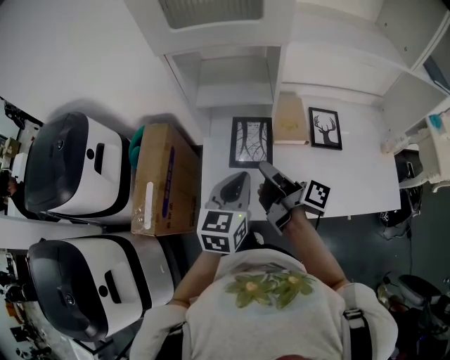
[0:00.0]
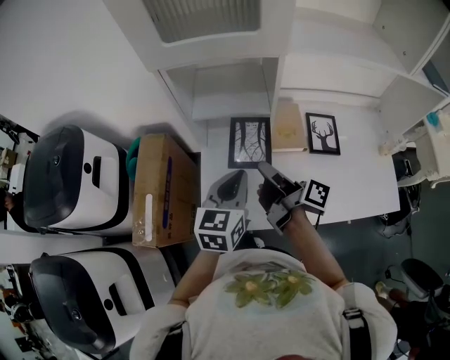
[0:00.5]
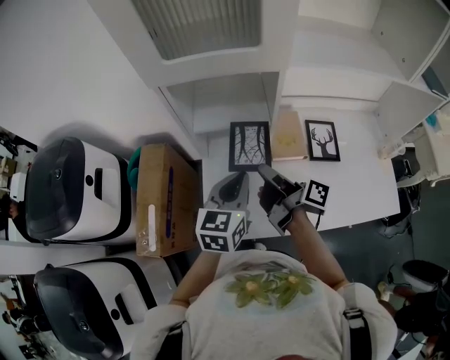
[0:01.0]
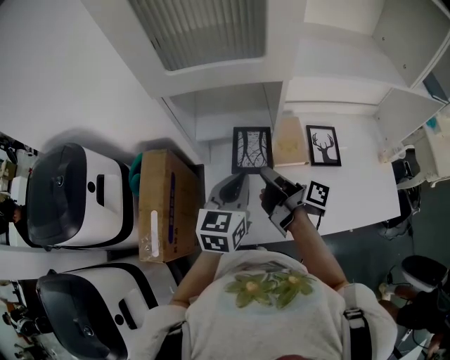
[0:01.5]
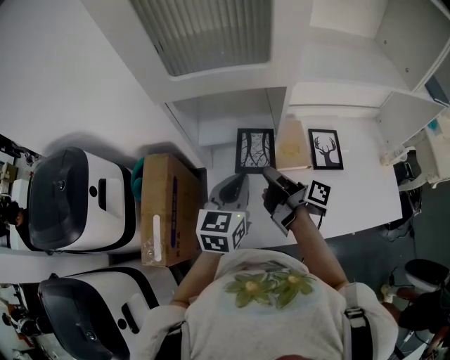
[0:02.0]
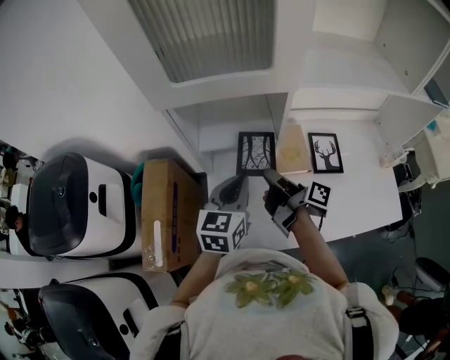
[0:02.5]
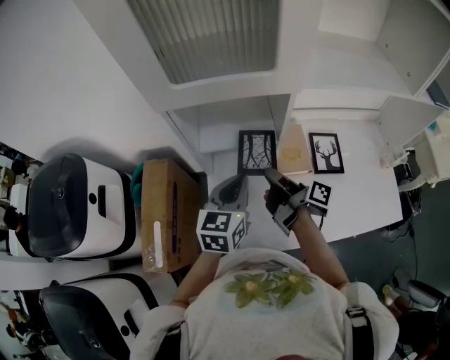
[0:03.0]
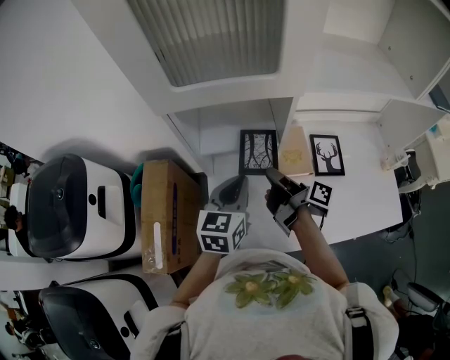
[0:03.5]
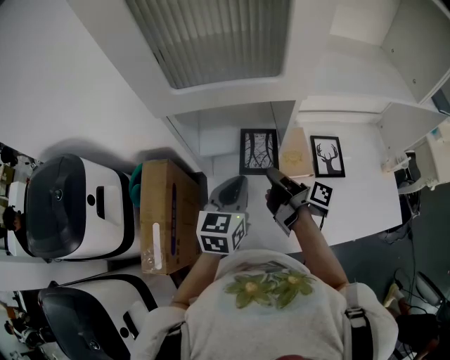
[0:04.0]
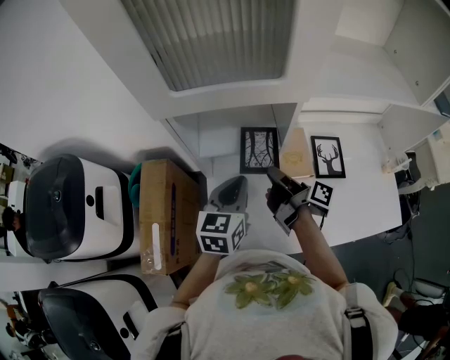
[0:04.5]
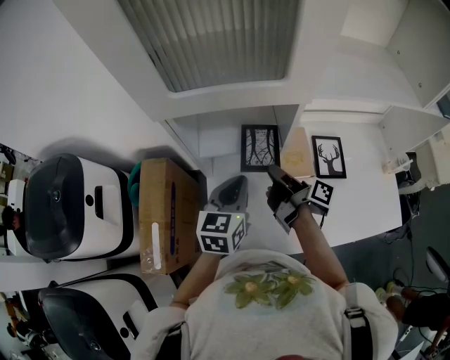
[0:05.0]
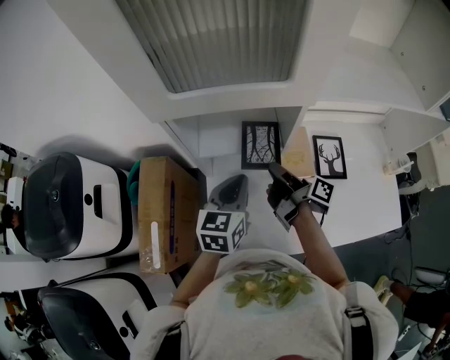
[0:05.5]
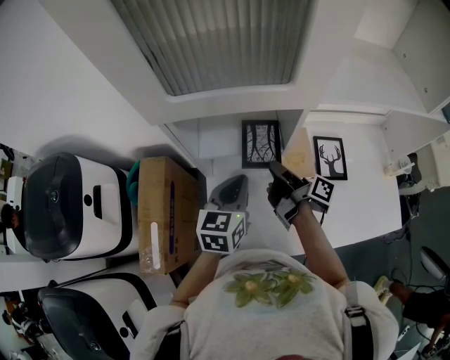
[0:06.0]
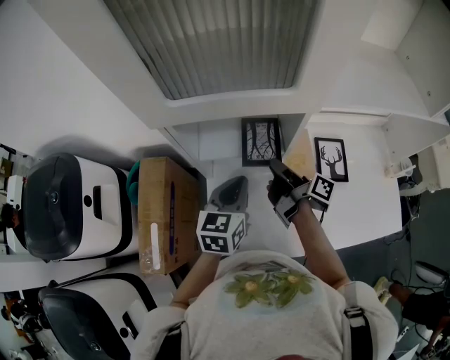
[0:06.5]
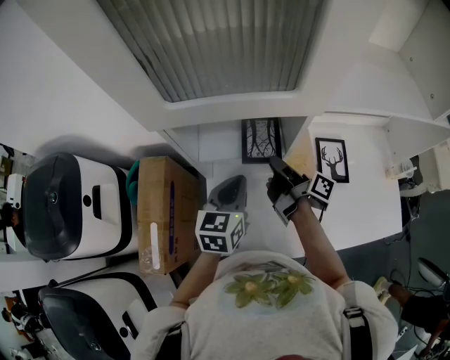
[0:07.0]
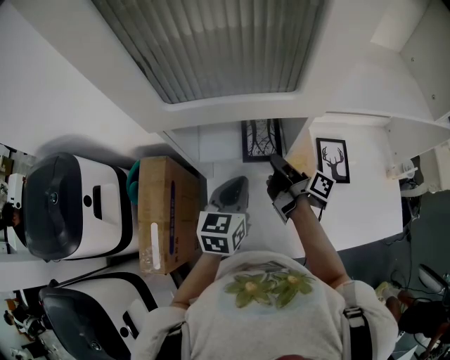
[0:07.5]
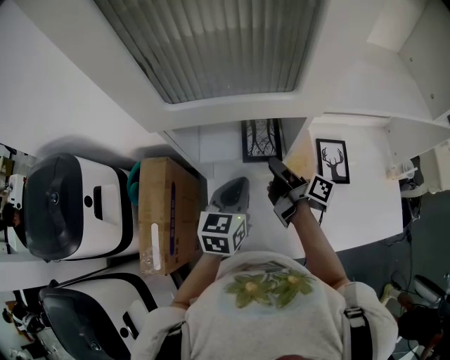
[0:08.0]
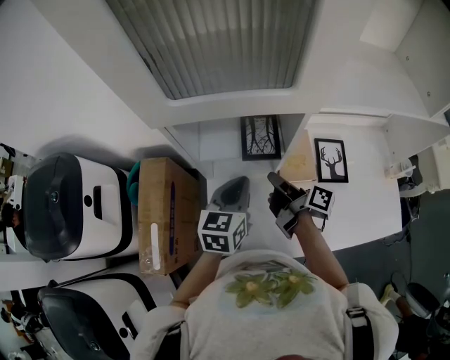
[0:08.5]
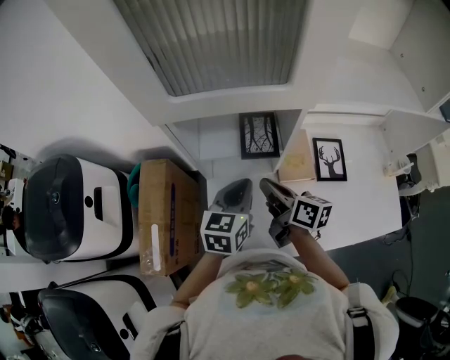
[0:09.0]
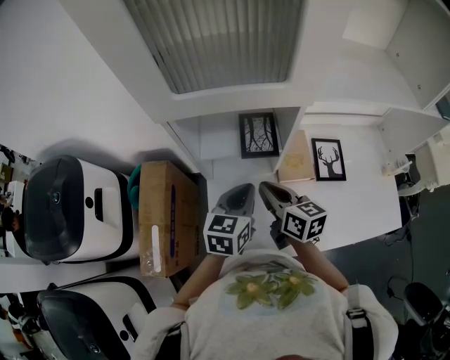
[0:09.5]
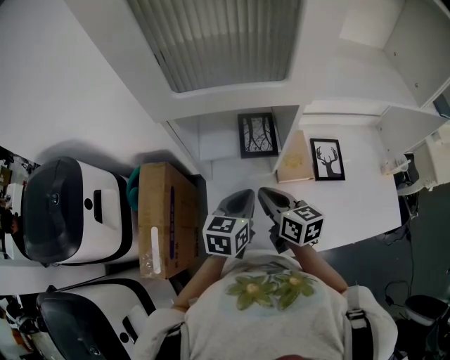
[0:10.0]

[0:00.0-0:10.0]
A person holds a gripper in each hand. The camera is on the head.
0:00.0 to 0:02.0: The left gripper shifts by roughly 10 cm.
0:08.0 to 0:10.0: The left gripper changes place by roughly 5 cm.

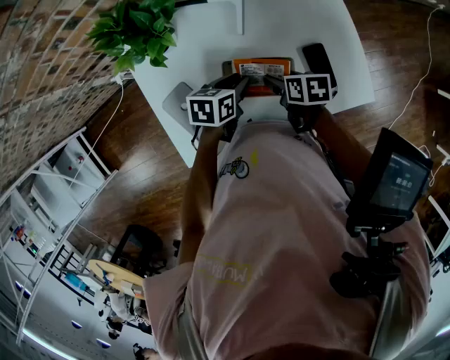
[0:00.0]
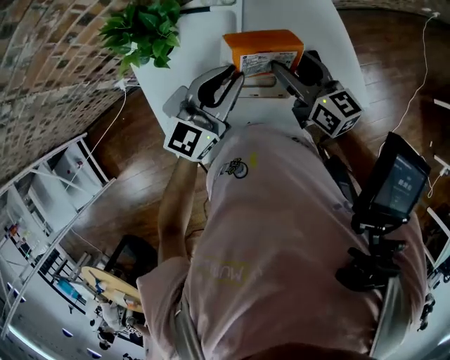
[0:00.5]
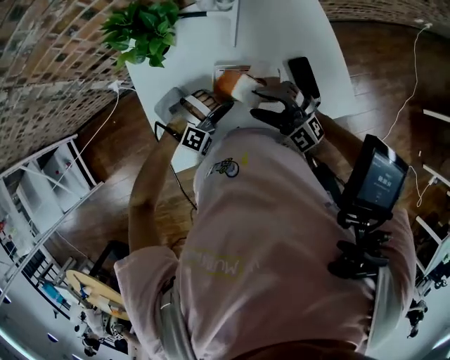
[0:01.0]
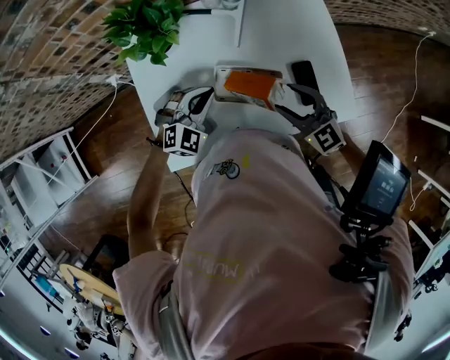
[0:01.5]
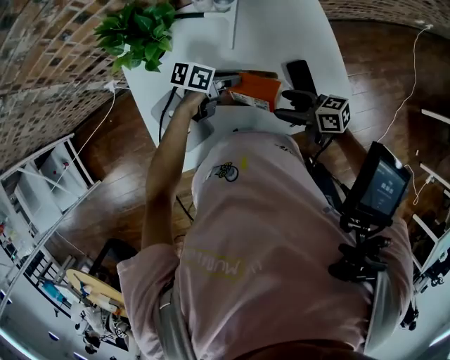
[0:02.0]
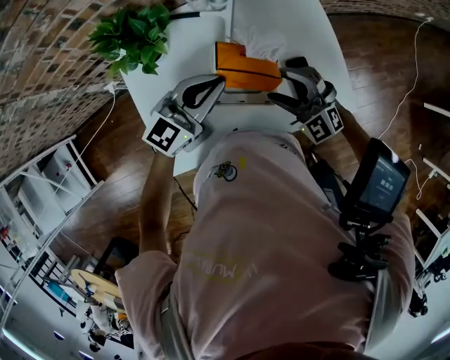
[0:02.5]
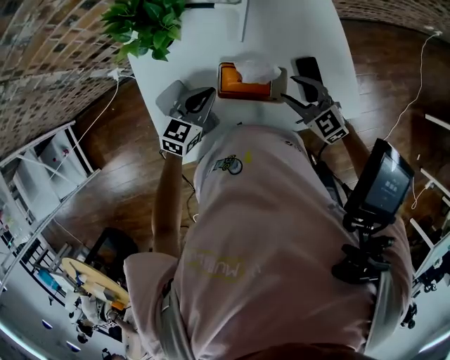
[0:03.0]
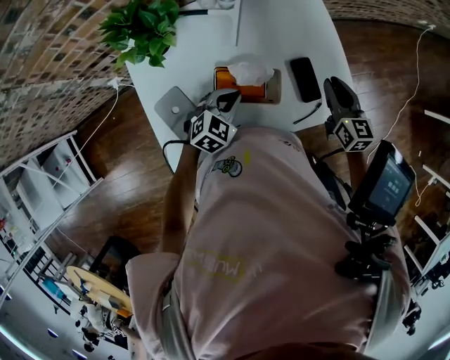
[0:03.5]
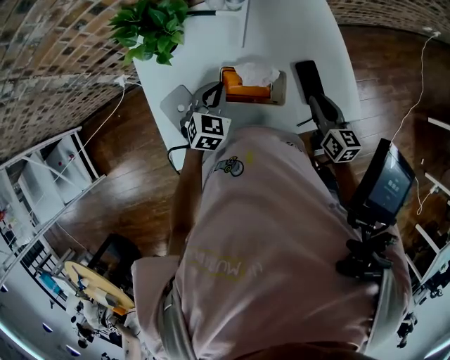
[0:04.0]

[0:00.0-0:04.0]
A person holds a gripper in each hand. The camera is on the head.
0:00.0 to 0:02.0: The left gripper swings up and down, some 25 cm each way, with 3 reversals, and rotates roughly 30 degrees. The right gripper moves upward, about 5 cm, and angles its fingers upward, by about 30 degrees.
0:02.0 to 0:04.0: The left gripper reaches approximately 20 cm upward, then returns, and changes its angle by roughly 70 degrees, while the right gripper swings up and down, roughly 5 cm each way, with 2 reversals, rotates approximately 50 degrees, and closes its fingers.

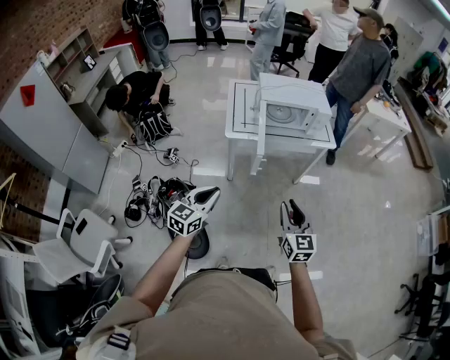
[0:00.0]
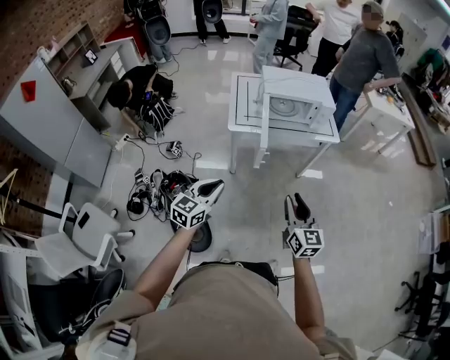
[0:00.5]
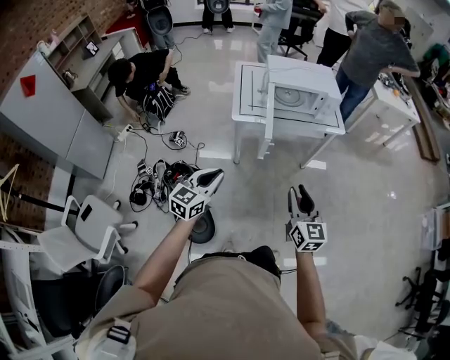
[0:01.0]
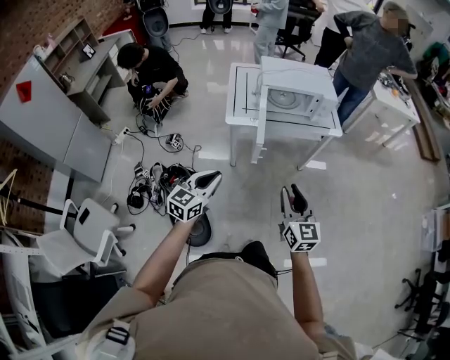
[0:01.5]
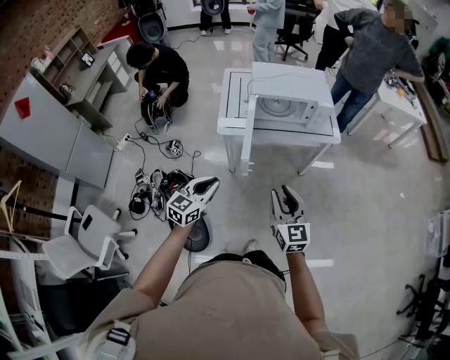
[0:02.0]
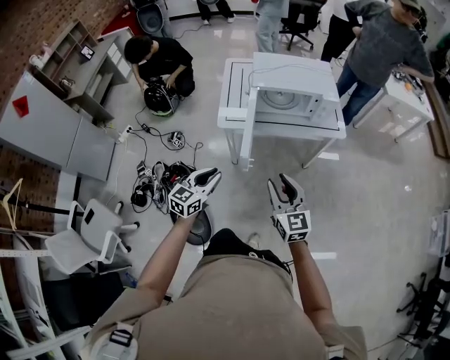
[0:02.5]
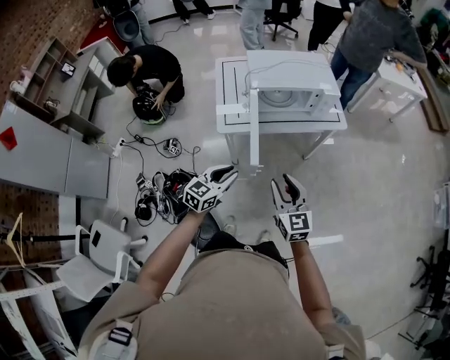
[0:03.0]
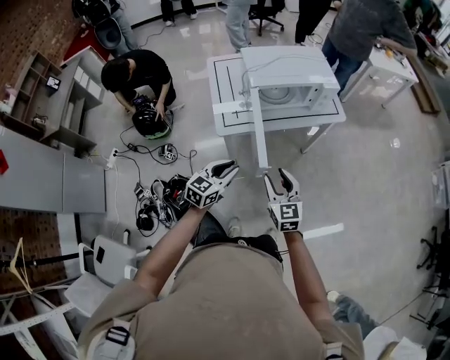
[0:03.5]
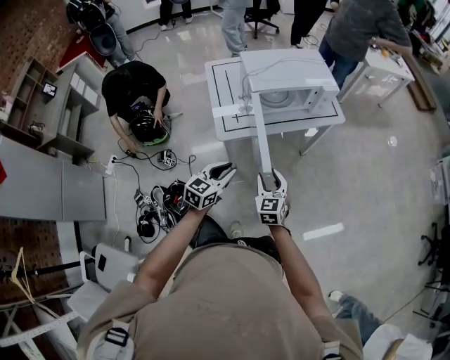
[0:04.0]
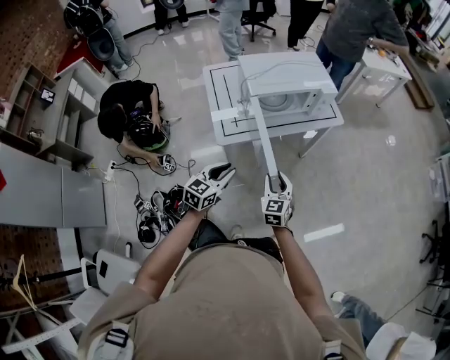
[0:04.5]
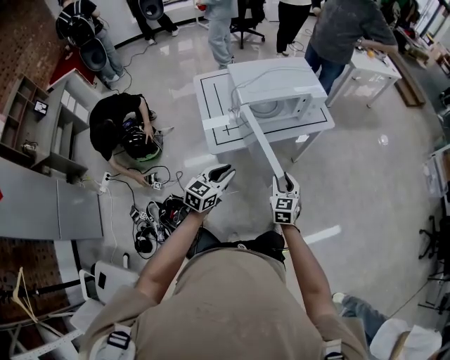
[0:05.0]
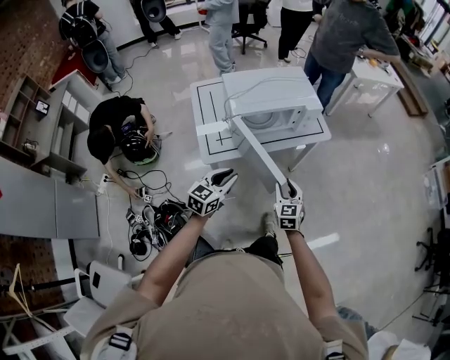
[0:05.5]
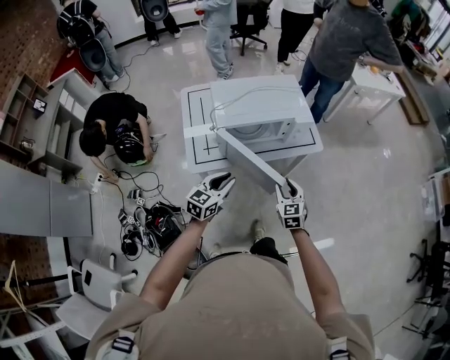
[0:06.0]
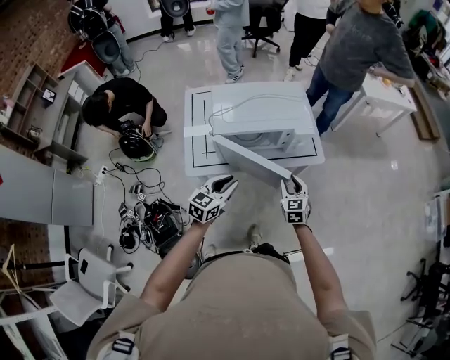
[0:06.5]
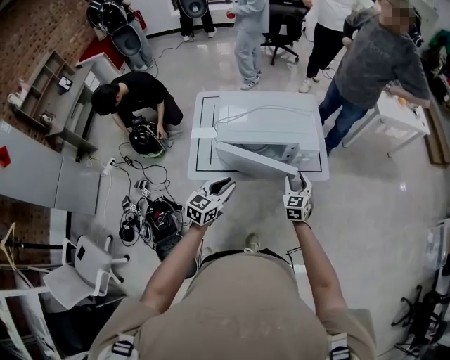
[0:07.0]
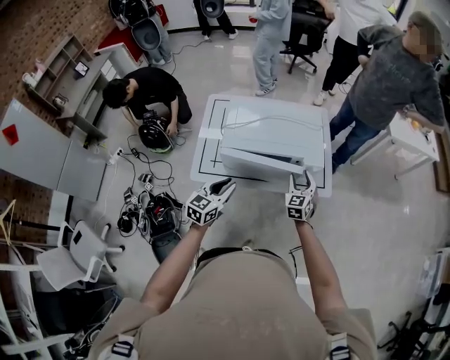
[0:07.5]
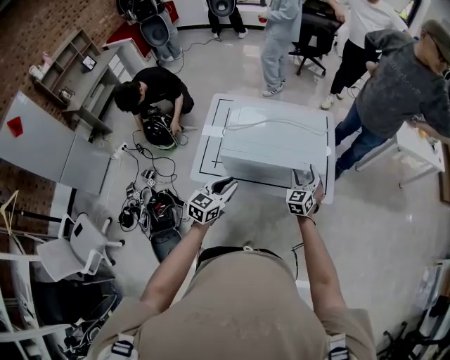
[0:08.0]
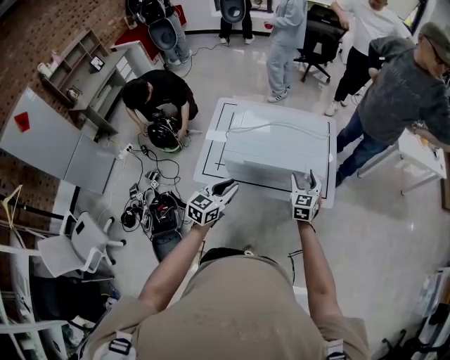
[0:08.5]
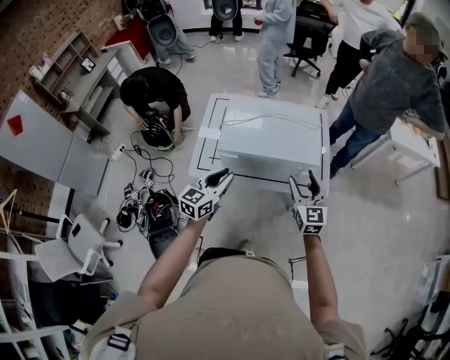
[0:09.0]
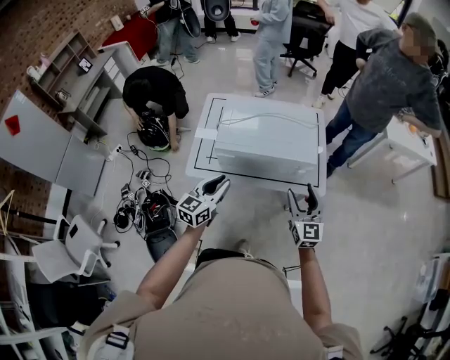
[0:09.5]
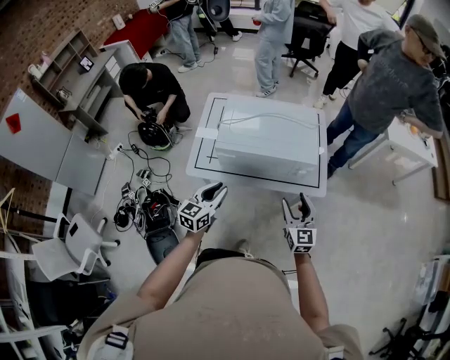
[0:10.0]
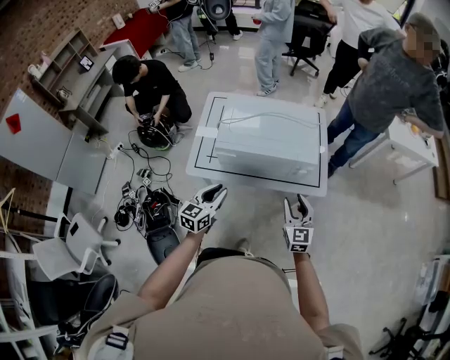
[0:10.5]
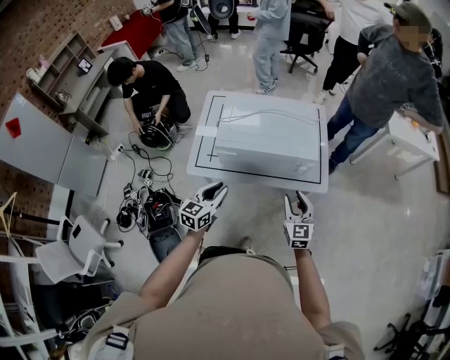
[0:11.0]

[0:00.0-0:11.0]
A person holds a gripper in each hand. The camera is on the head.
0:00.0 to 0:02.0: The left gripper travels forward and to the right by roughly 15 cm; the right gripper is displaced forward by roughly 10 cm.
0:02.0 to 0:03.5: The left gripper heads forward, downward and to the left, covering roughly 15 cm; the right gripper shifts some 20 cm to the left, forward and downward.
0:03.5 to 0:05.5: The right gripper travels forward, to the right and downward by some 15 cm; the left gripper is displaced forward by approximately 10 cm.
0:05.5 to 0:07.5: The left gripper shifts approximately 20 cm forward and to the right, and turns by some 20 degrees; the right gripper goes about 30 cm forward.
0:07.5 to 0:09.0: The left gripper travels upward by about 5 cm, while the right gripper heads upward and backward, covering some 15 cm, and swivels approximately 30 degrees.
0:09.0 to 0:11.0: The left gripper shifts approximately 5 cm downward. Meanwhile the right gripper moves downward and backward, approximately 10 cm, and closes up.

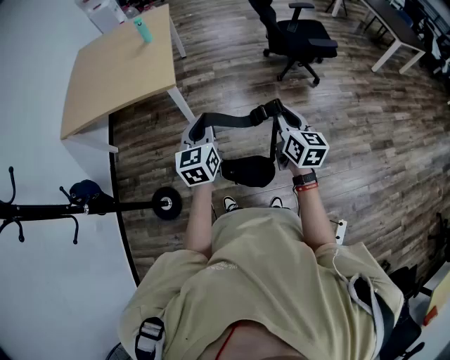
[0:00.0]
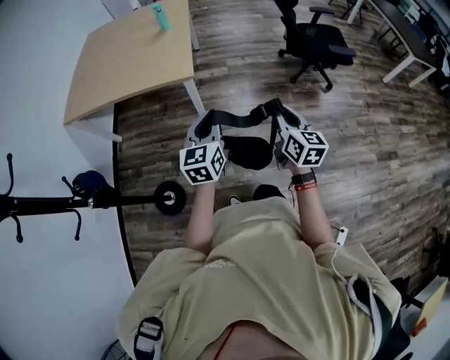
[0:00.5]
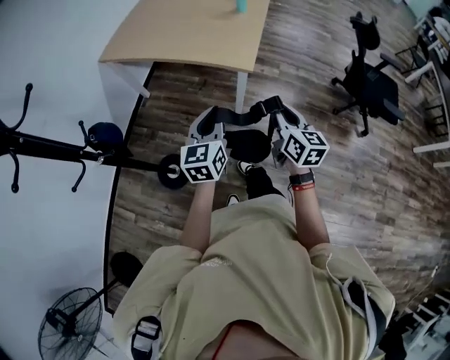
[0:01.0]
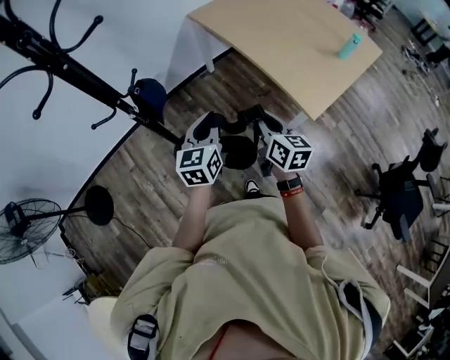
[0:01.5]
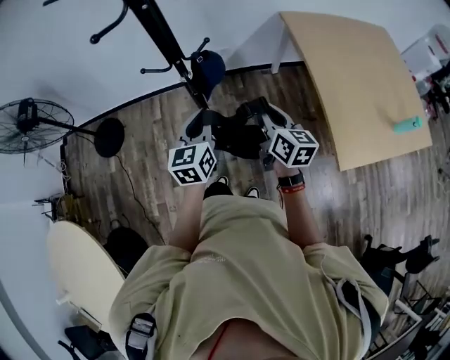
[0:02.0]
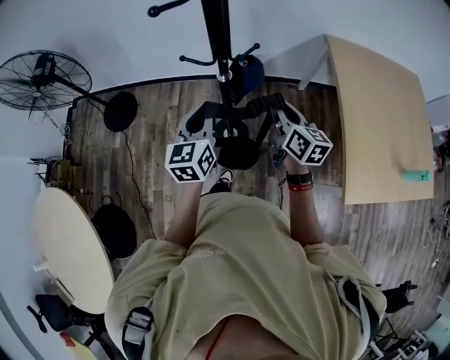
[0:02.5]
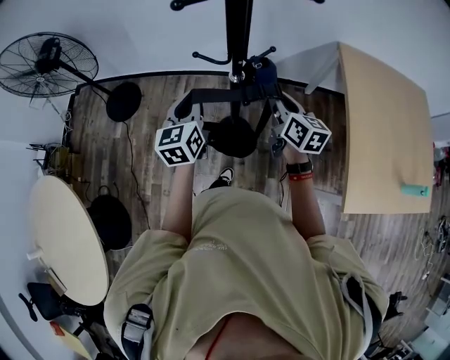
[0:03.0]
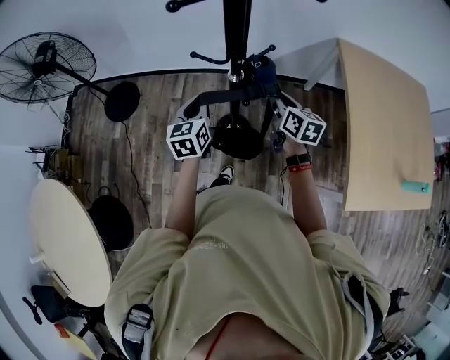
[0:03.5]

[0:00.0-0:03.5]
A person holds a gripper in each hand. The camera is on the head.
0:00.0 to 0:02.0: The pair of grippers is taken about 60 cm. The right gripper turns by some 100 degrees, while the left gripper changes its angle by about 90 degrees.
0:02.0 to 0:03.5: The right gripper moves forward and to the left, roughly 20 cm. Meanwhile the left gripper heads to the left and forward, covering roughly 20 cm.
